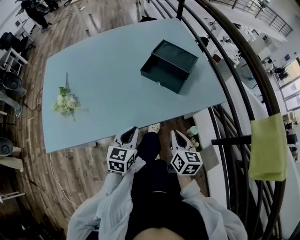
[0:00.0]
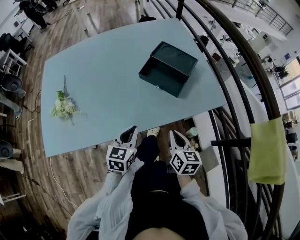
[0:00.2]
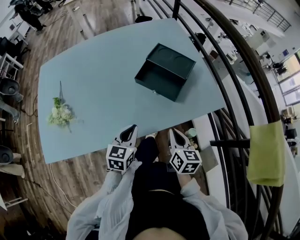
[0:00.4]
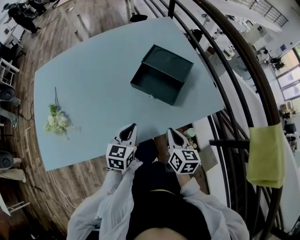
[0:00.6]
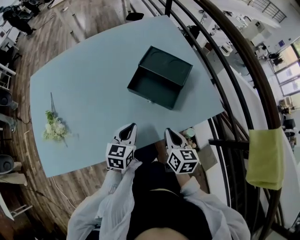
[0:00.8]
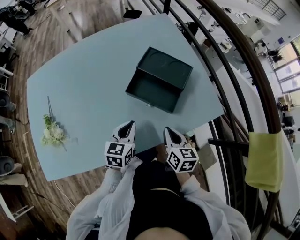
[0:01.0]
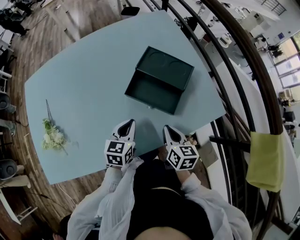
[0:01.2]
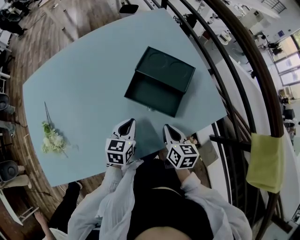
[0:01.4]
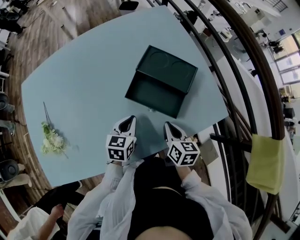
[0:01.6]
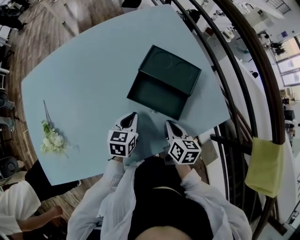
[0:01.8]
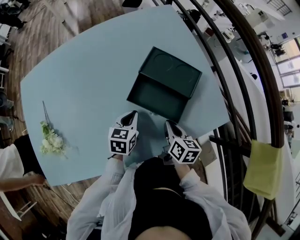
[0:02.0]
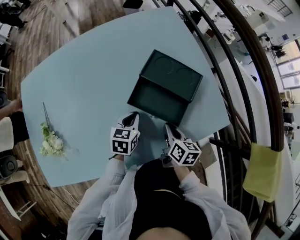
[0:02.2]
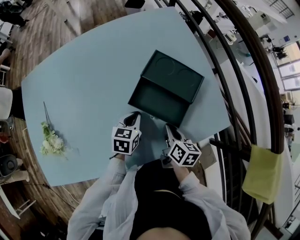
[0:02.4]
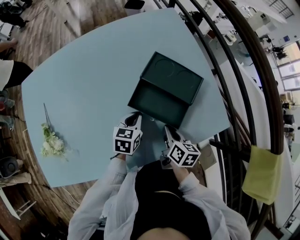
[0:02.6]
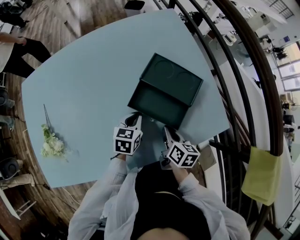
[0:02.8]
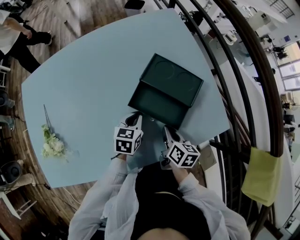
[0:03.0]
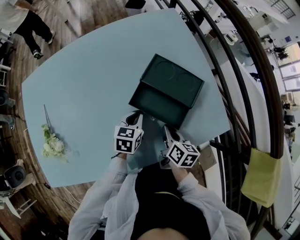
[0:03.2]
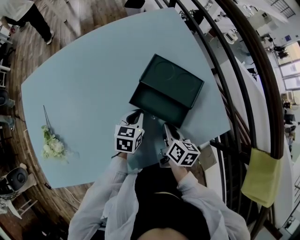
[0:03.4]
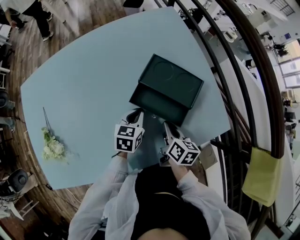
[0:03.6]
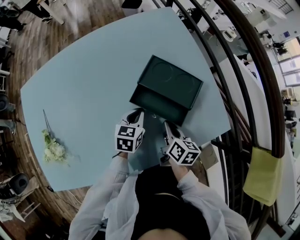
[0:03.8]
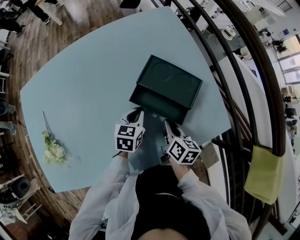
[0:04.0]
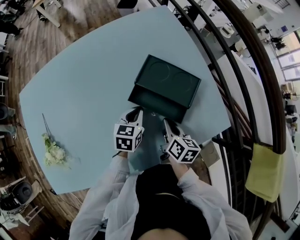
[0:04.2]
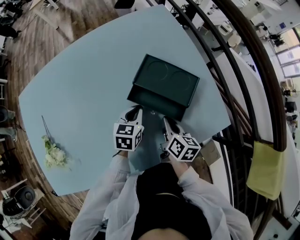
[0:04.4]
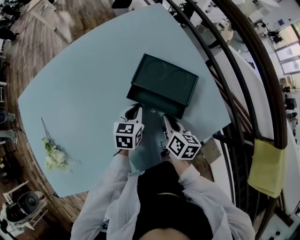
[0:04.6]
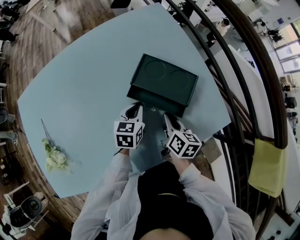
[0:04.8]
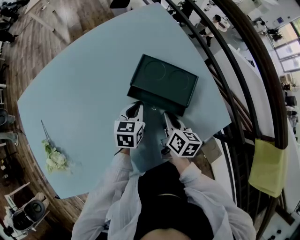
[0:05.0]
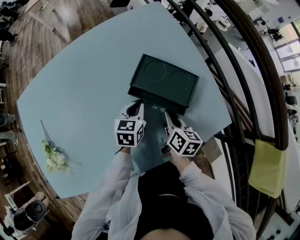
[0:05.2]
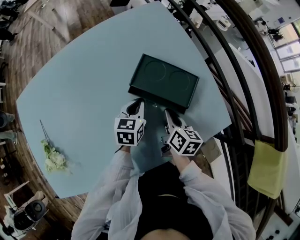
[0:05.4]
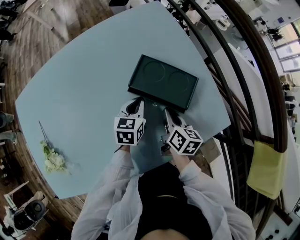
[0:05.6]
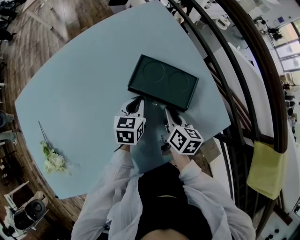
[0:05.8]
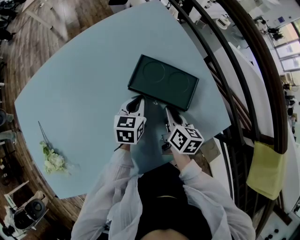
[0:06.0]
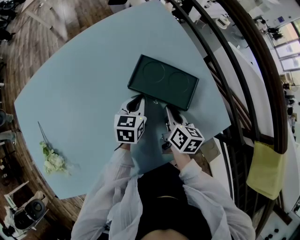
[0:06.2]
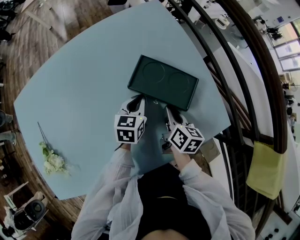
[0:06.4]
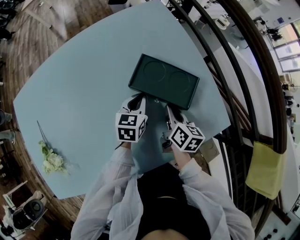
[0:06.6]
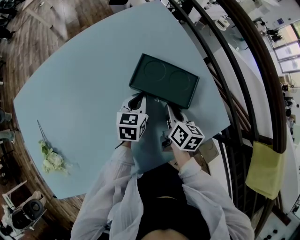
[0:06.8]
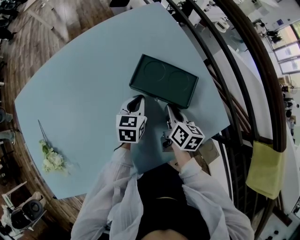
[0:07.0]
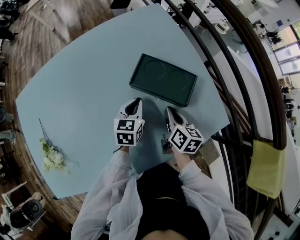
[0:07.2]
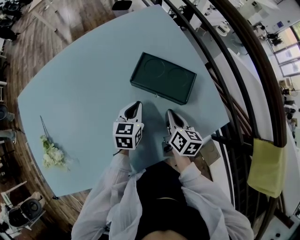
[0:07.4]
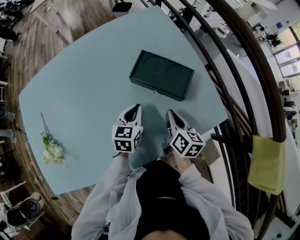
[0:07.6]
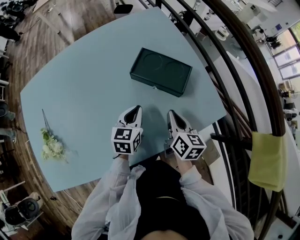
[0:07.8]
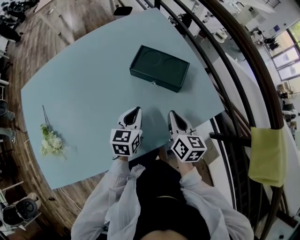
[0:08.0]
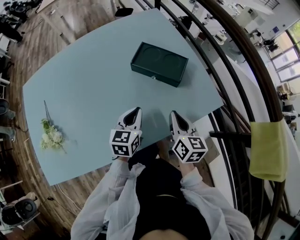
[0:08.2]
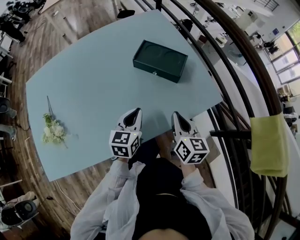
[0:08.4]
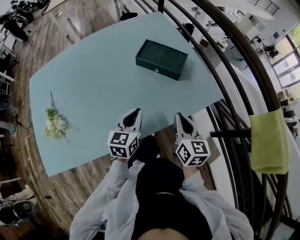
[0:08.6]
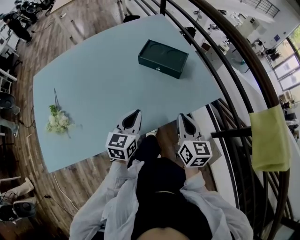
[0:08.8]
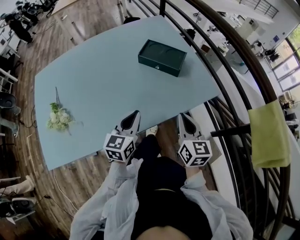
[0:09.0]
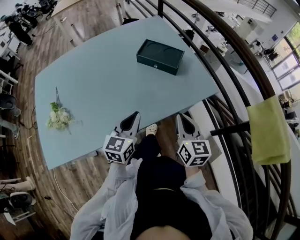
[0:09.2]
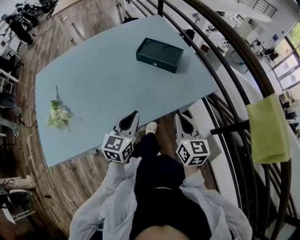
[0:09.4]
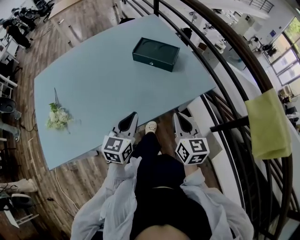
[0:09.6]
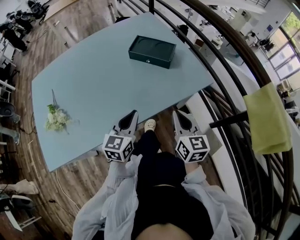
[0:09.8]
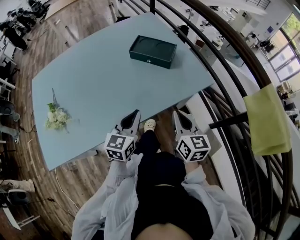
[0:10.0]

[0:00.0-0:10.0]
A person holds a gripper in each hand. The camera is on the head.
0:00.0 to 0:01.4: The grippers both shift forward by some 20 cm.
0:01.4 to 0:02.8: The left gripper moves forward, roughly 5 cm.
0:02.8 to 0:04.2: The grippers make only small movements.
0:04.2 to 0:05.8: The two grippers go about 5 cm forward.
0:05.8 to 0:07.2: There are only small adjustments of the grippers.
0:07.2 to 0:08.6: The left gripper travels backward by roughly 20 cm. Meanwhile the right gripper shifts approximately 20 cm backward and upward, and changes its angle by about 20 degrees.
0:08.6 to 0:10.0: The grippers both shift backward by some 10 cm.

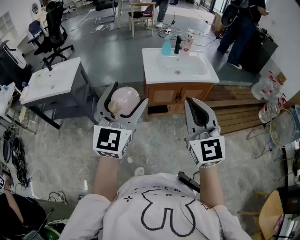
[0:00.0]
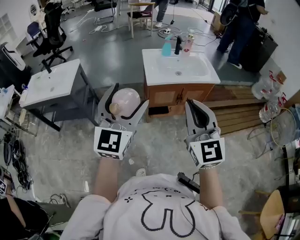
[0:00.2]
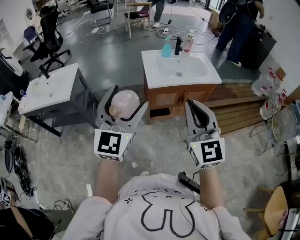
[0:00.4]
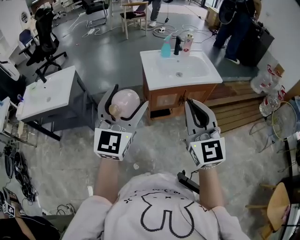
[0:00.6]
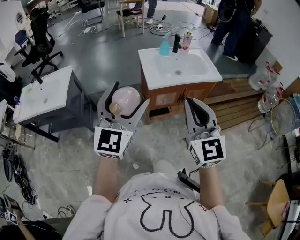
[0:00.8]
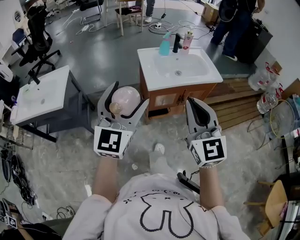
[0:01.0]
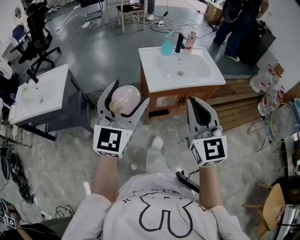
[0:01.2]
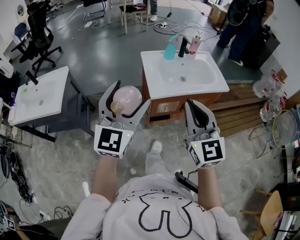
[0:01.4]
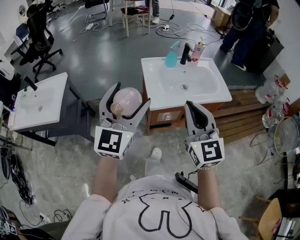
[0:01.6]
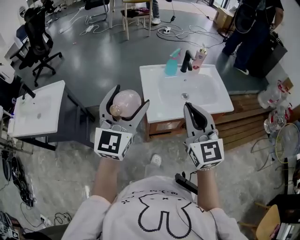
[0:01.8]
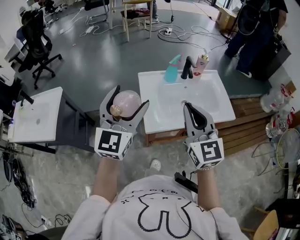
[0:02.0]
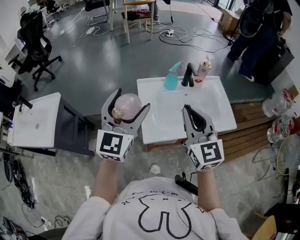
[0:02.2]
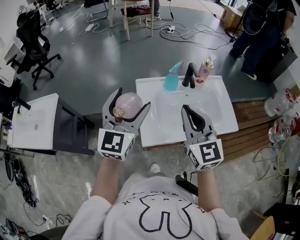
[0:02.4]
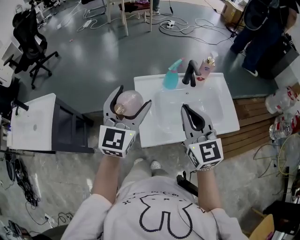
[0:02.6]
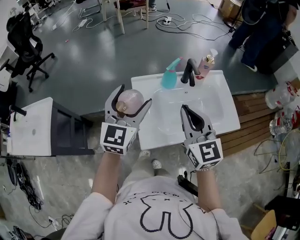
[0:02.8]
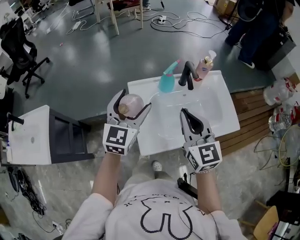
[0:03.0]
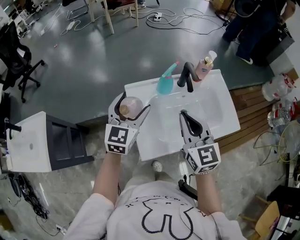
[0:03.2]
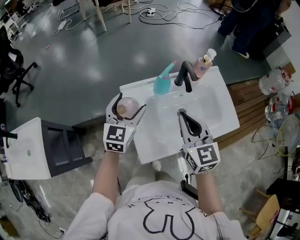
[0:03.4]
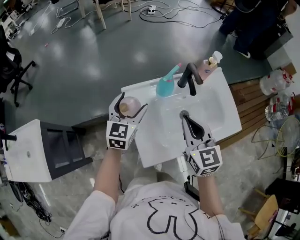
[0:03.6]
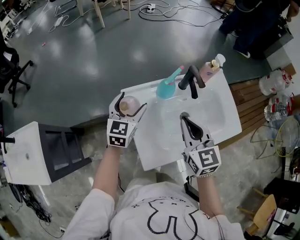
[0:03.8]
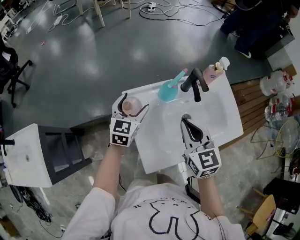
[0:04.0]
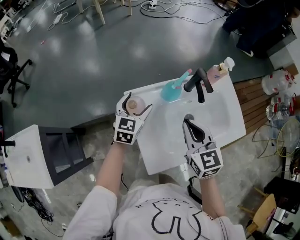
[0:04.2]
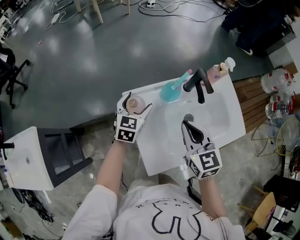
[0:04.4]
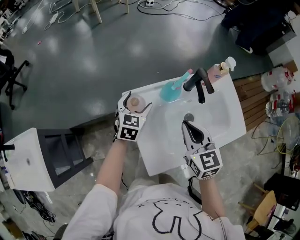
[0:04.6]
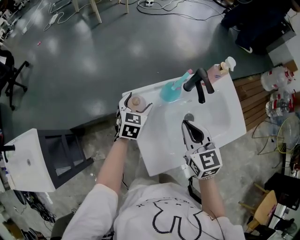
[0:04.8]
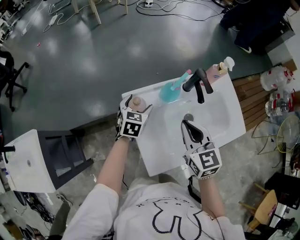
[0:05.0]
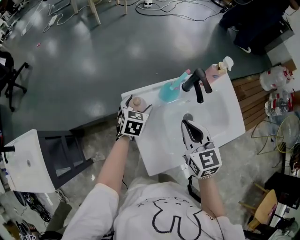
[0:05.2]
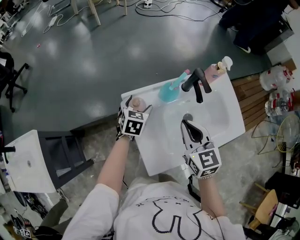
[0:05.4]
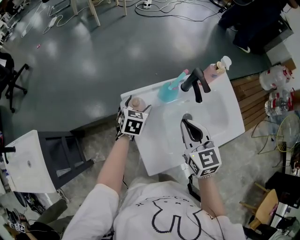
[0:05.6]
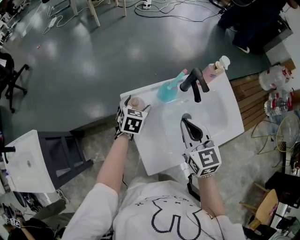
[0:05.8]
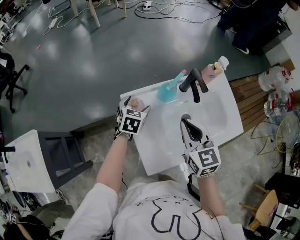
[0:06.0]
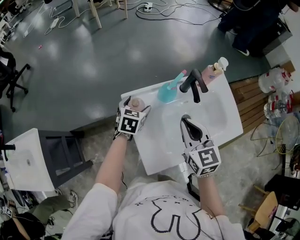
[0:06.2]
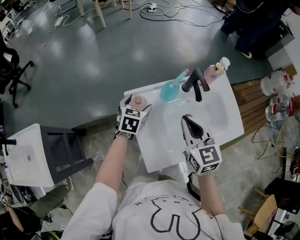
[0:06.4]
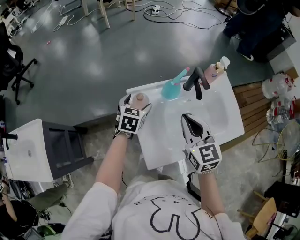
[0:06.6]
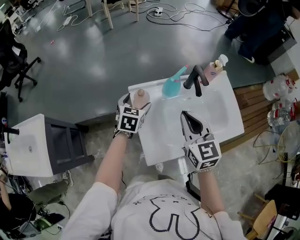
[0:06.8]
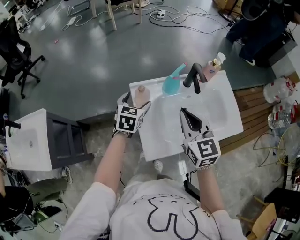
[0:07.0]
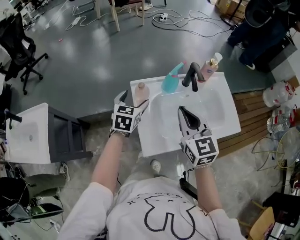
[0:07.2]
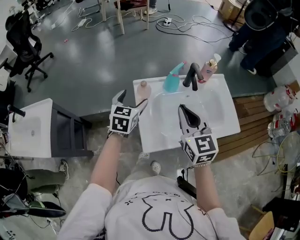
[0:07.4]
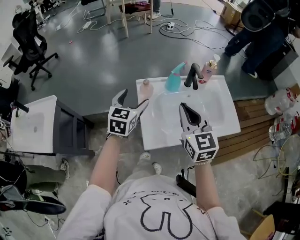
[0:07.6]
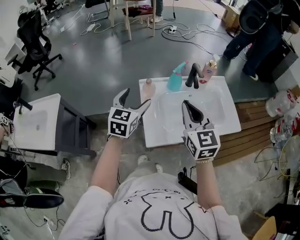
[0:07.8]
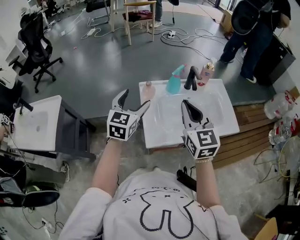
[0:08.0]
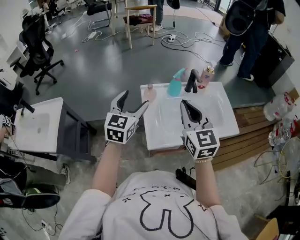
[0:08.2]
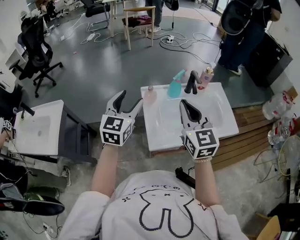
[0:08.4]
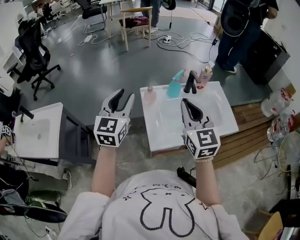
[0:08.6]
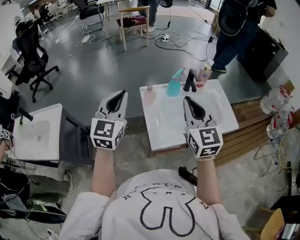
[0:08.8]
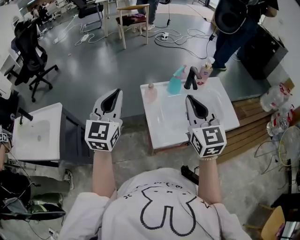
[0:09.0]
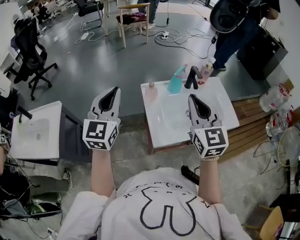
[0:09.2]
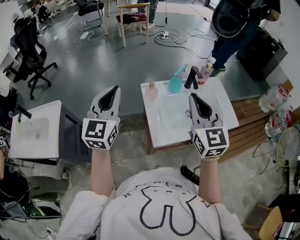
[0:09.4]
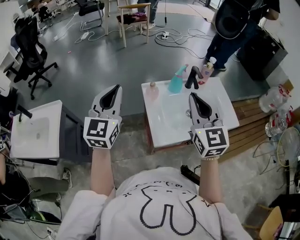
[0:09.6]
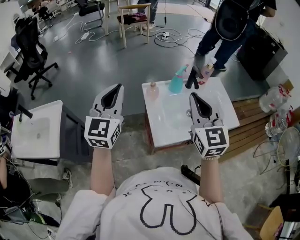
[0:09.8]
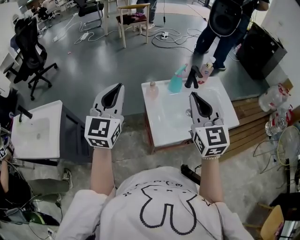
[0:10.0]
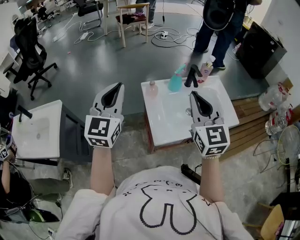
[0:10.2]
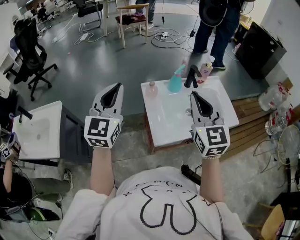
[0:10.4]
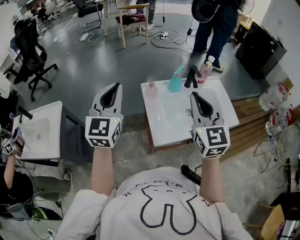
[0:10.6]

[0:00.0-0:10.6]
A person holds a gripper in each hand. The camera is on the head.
0:00.0 to 0:01.6: Both grippers move forward, roughly 25 cm.
0:01.6 to 0:03.0: The two grippers go approximately 30 cm forward.
0:03.0 to 0:04.6: The left gripper is displaced downward and forward by roughly 25 cm, and changes its angle by roughly 30 degrees. The right gripper goes approximately 15 cm downward and forward.
0:04.6 to 0:06.0: The grippers stay close to where they were, moving slightly.
0:06.0 to 0:07.6: The right gripper is displaced upward and backward by about 10 cm, while the left gripper shifts roughly 20 cm upward and backward, and swivels some 30 degrees.
0:07.6 to 0:09.0: The right gripper shifts roughly 10 cm upward. The left gripper moves upward, to the left and backward, some 20 cm, rotates about 30 degrees, and closes up.
0:09.0 to 0:10.6: The grippers make only small movements.

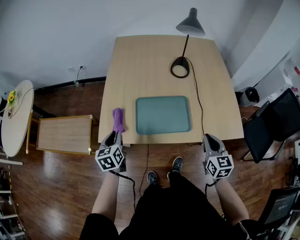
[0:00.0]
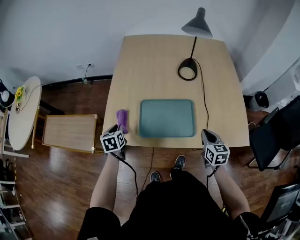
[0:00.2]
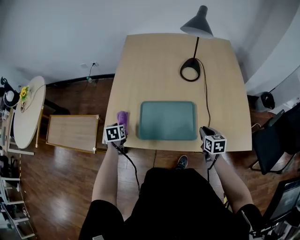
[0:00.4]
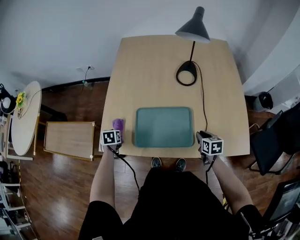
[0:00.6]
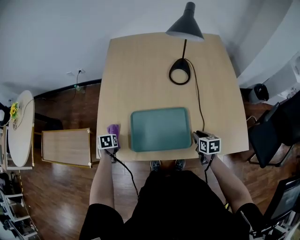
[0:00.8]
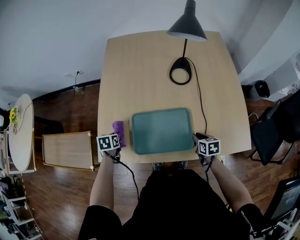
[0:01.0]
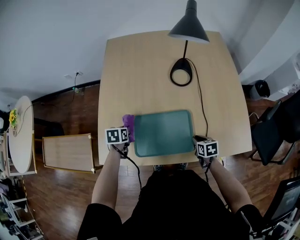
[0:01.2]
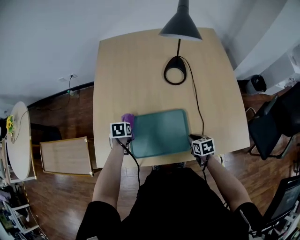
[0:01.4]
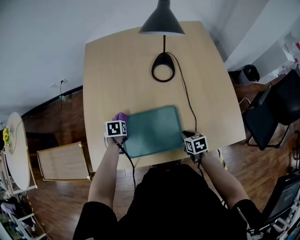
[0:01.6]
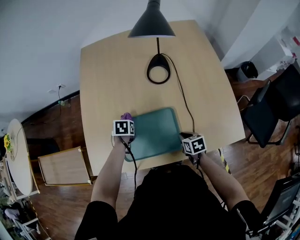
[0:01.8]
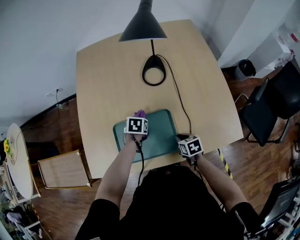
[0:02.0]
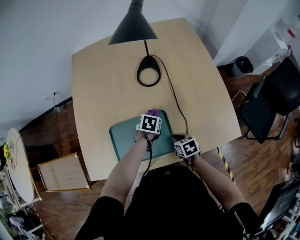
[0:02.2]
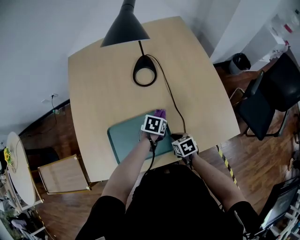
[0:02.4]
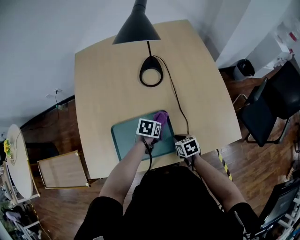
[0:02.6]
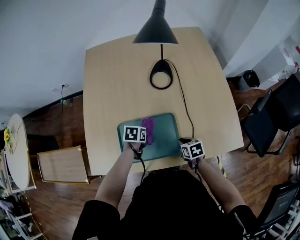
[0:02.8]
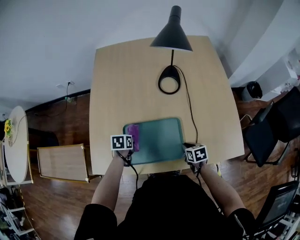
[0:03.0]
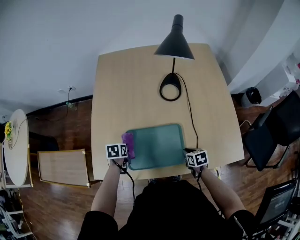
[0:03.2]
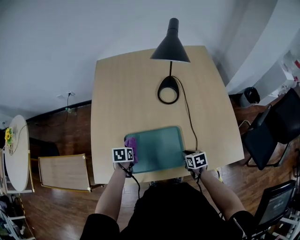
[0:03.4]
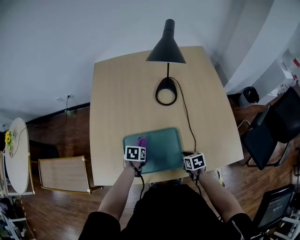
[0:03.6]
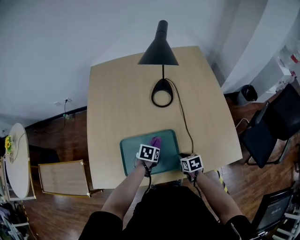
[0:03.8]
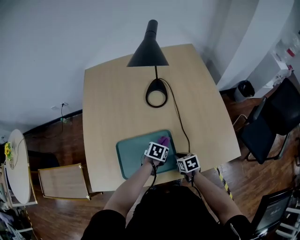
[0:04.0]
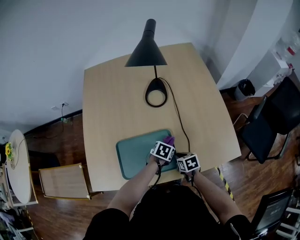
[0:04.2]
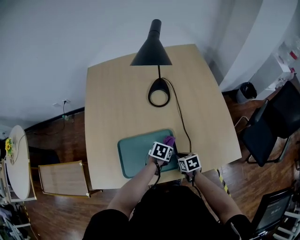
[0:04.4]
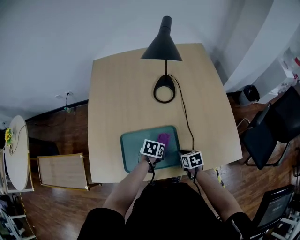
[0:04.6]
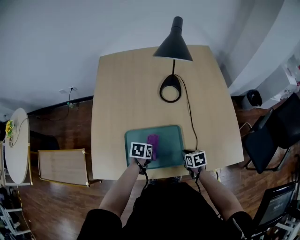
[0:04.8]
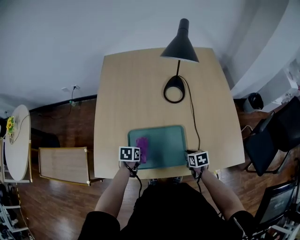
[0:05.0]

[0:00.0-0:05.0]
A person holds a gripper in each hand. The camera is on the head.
0:00.0 to 0:01.6: The right gripper heads downward and forward, covering approximately 25 cm, and tilts its fingers approximately 30 degrees downward; the left gripper heads forward, downward and to the right, covering some 25 cm, and points its fingers some 40 degrees further downward.
0:01.6 to 0:03.4: The left gripper swings left and right, roughly 30 cm each way, with 2 reversals.
0:03.4 to 0:05.0: The left gripper reaches about 25 cm to the right, then returns.
